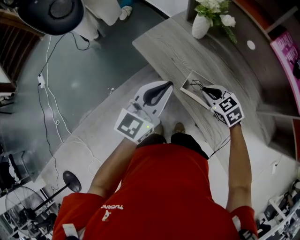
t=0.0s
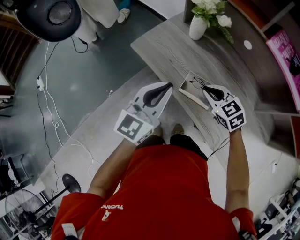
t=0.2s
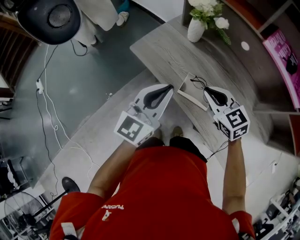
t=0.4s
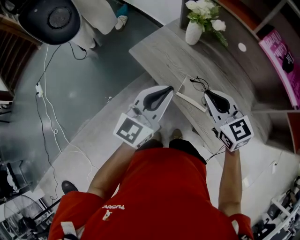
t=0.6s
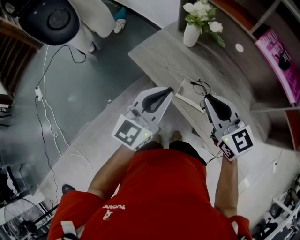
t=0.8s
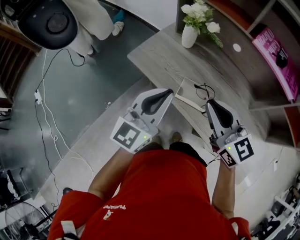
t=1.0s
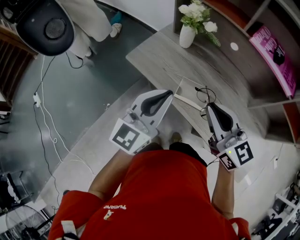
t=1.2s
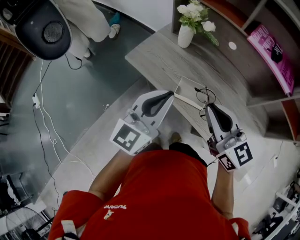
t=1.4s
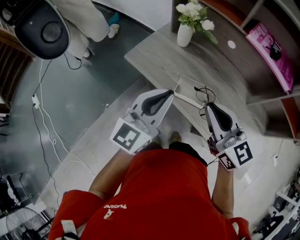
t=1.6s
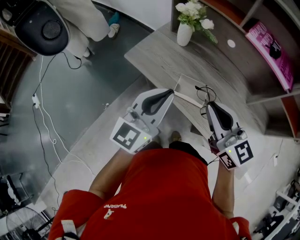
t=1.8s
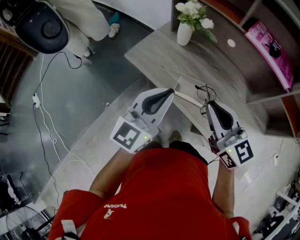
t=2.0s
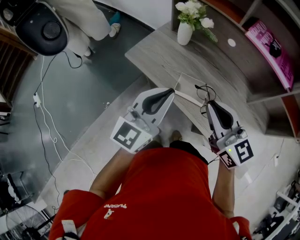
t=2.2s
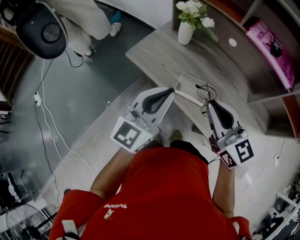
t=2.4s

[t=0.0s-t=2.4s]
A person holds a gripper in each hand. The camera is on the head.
t=0.0s to t=1.2s: The left gripper moves upward, roughly 5 cm. The right gripper moves upward, approximately 25 cm, and points its fingers roughly 40 degrees further upward.
t=1.2s to t=2.4s: The grippers stay close to where they were, moving slightly.

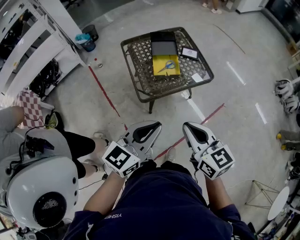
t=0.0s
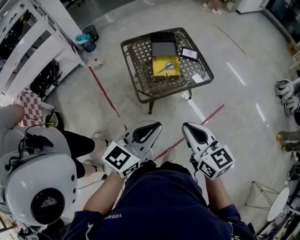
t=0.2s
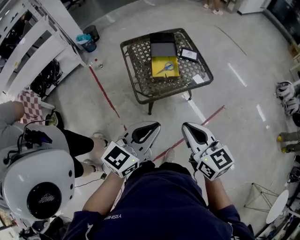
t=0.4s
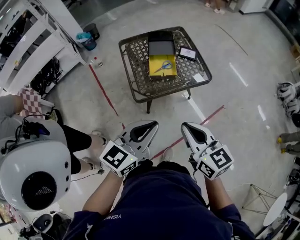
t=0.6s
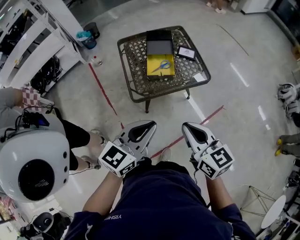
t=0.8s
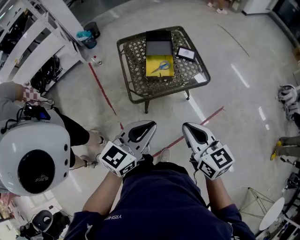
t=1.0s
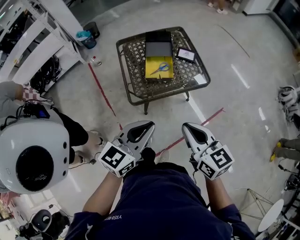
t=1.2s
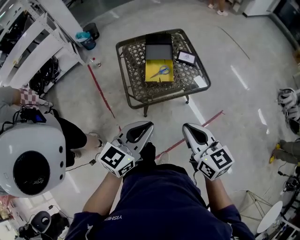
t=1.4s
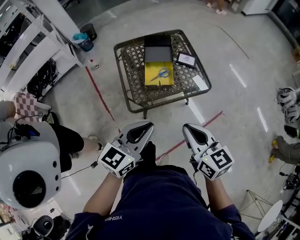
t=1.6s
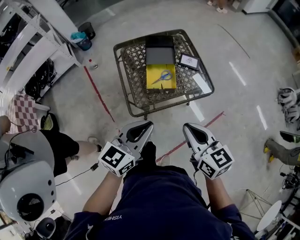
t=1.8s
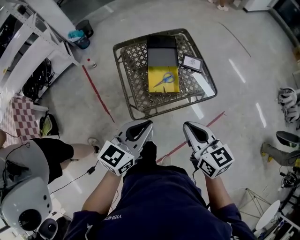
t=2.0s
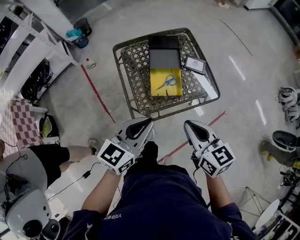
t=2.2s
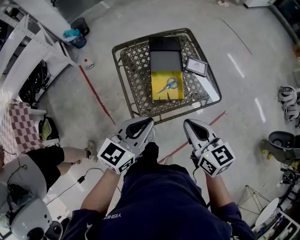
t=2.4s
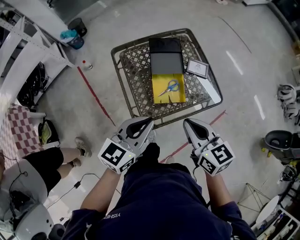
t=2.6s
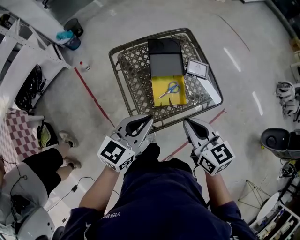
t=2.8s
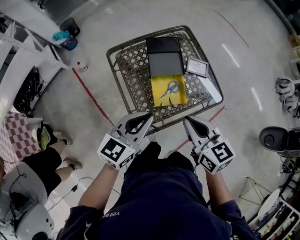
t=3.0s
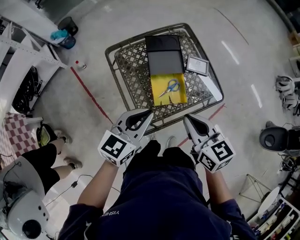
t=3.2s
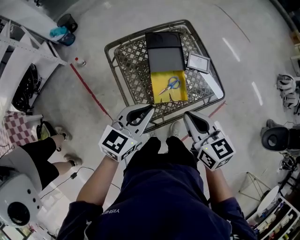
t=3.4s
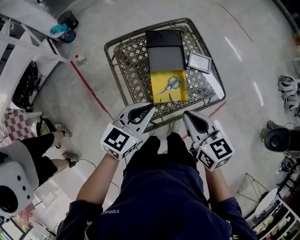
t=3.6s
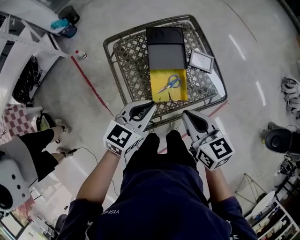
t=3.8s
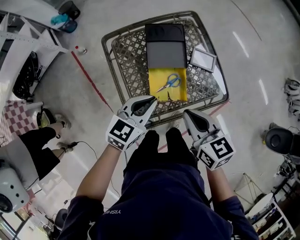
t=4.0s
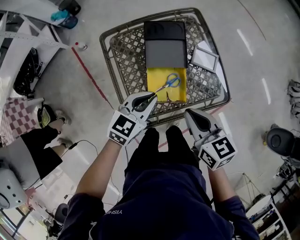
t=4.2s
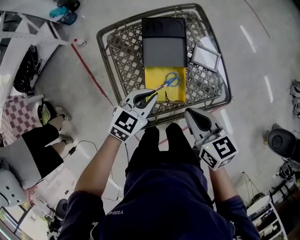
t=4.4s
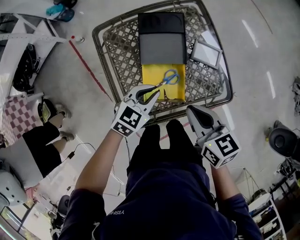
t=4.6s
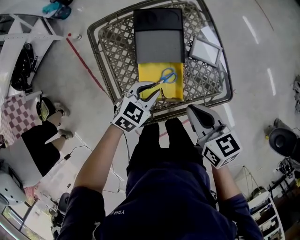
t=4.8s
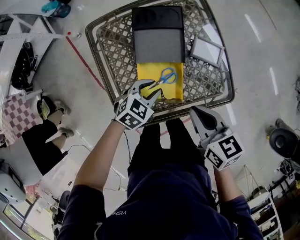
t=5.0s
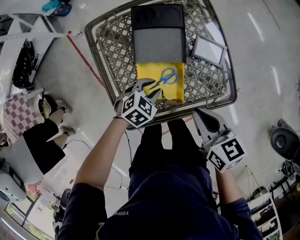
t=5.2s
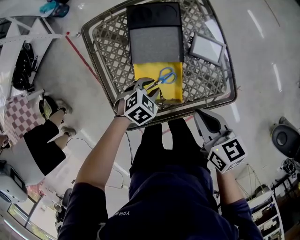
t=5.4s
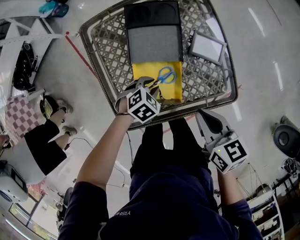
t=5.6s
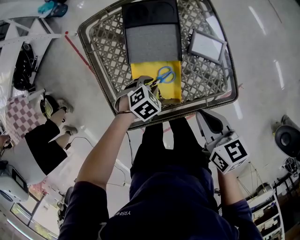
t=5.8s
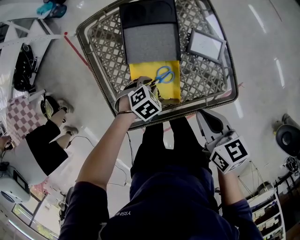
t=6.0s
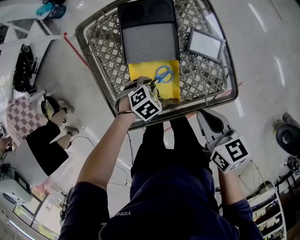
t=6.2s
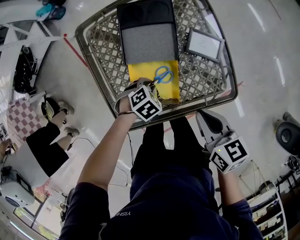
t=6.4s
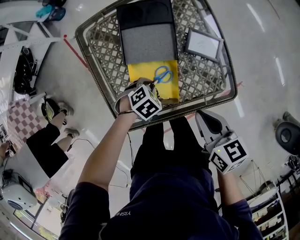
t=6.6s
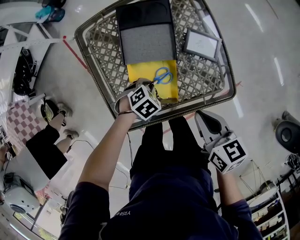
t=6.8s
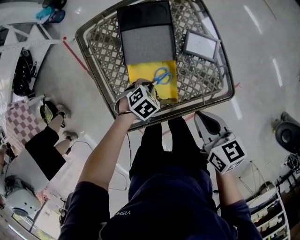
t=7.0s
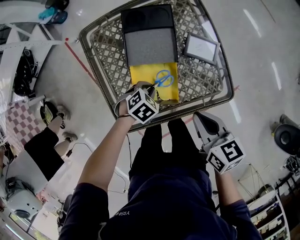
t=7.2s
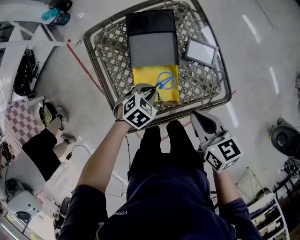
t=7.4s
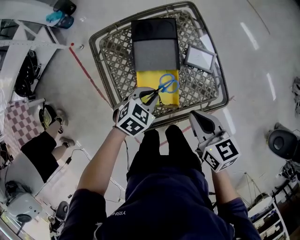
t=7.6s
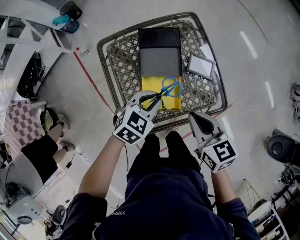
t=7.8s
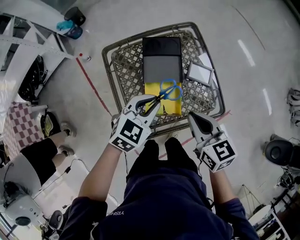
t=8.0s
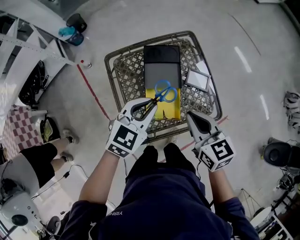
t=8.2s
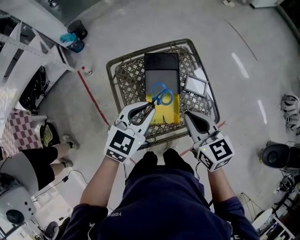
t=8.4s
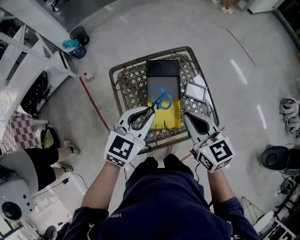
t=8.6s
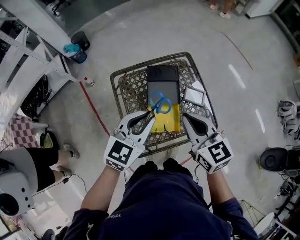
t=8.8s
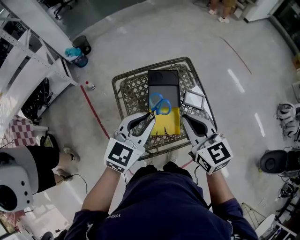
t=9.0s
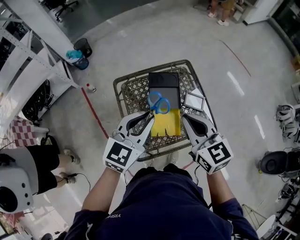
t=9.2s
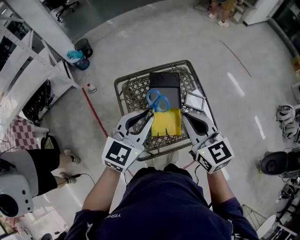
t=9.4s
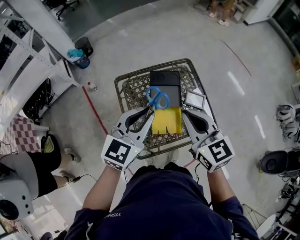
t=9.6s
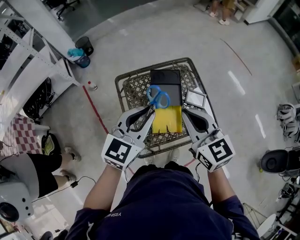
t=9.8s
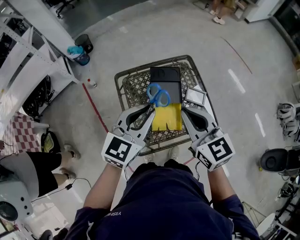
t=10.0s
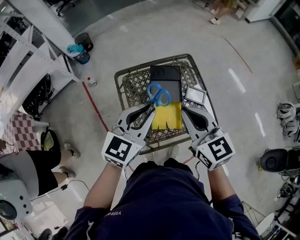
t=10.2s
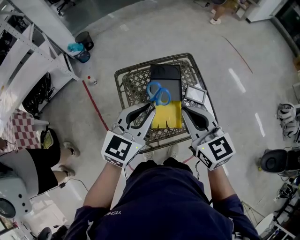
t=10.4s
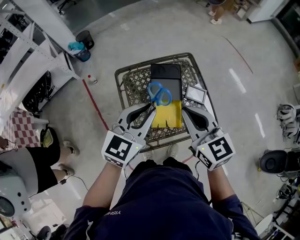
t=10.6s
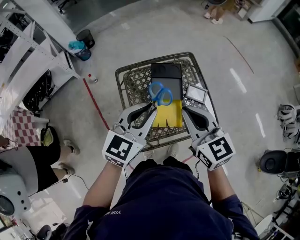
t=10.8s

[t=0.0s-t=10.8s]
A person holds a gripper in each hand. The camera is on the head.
t=0.0s to t=1.6s: The right gripper travels forward and to the right by some 10 cm, while the left gripper heads forward, covering some 10 cm.
t=1.6s to t=3.0s: Both grippers travel together forward and to the left, roughly 25 cm.
t=3.0s to t=4.6s: The left gripper travels downward, forward and to the right by some 20 cm, and swivels roughly 30 degrees. Meanwhile the right gripper goes about 15 cm downward, forward and to the right.
t=4.6s to t=6.2s: The left gripper heads downward, covering roughly 15 cm, and tilts its fingers roughly 40 degrees downward, while the right gripper moves some 10 cm.
t=6.2s to t=7.8s: The right gripper heads upward, covering about 10 cm. The left gripper travels upward by about 20 cm, and tips its fingers upward by roughly 30 degrees.
t=7.8s to t=9.2s: The left gripper goes about 25 cm upward, and changes its angle by some 30 degrees. Meanwhile the right gripper shifts roughly 20 cm upward and to the left, and rotates some 20 degrees.
t=9.2s to t=10.8s: The grippers make only small movements.

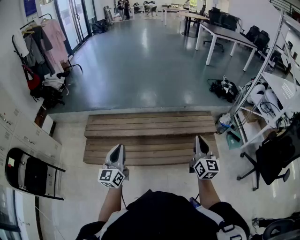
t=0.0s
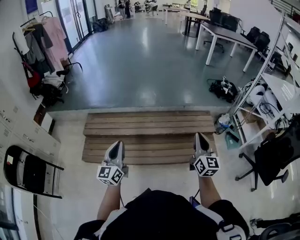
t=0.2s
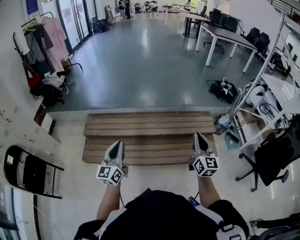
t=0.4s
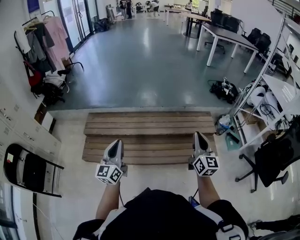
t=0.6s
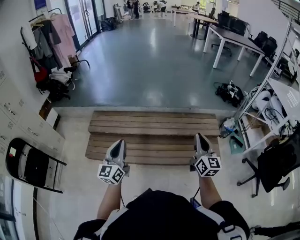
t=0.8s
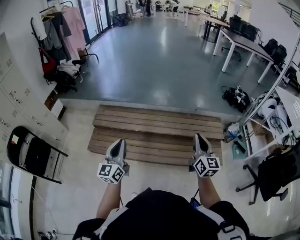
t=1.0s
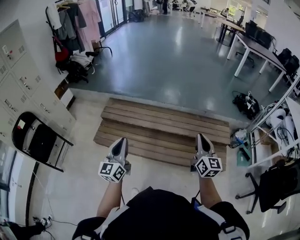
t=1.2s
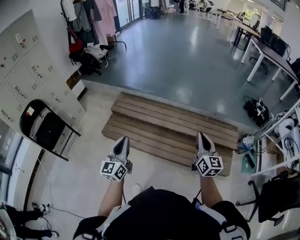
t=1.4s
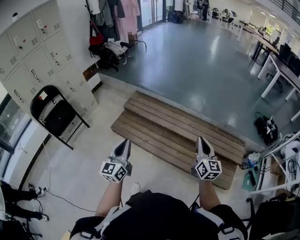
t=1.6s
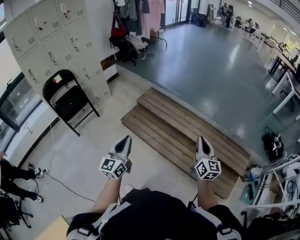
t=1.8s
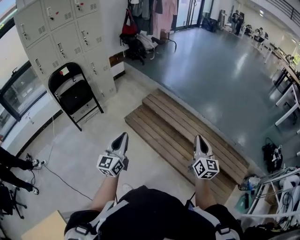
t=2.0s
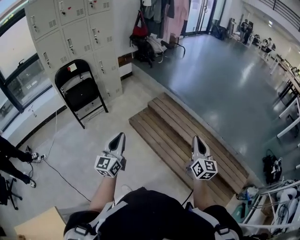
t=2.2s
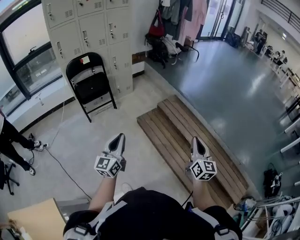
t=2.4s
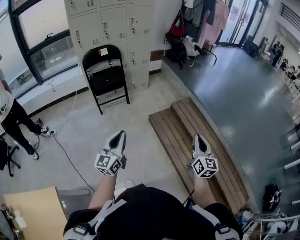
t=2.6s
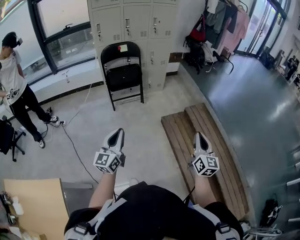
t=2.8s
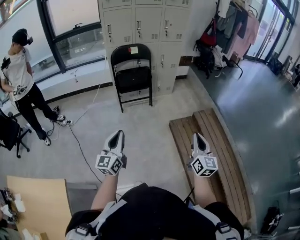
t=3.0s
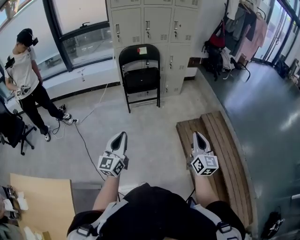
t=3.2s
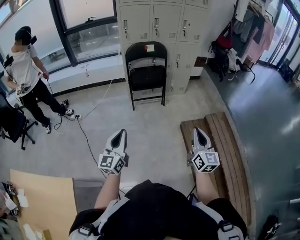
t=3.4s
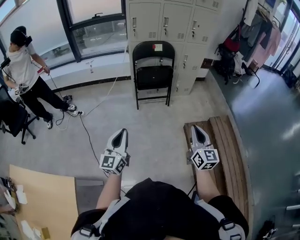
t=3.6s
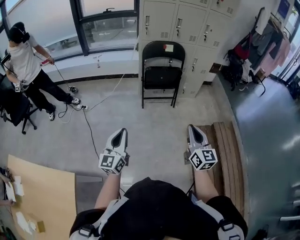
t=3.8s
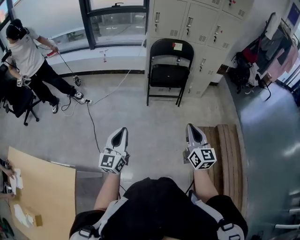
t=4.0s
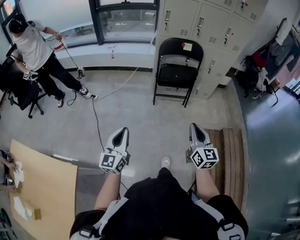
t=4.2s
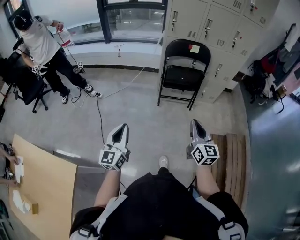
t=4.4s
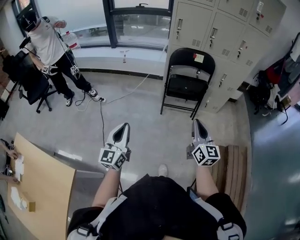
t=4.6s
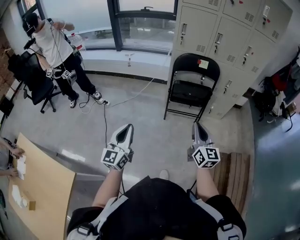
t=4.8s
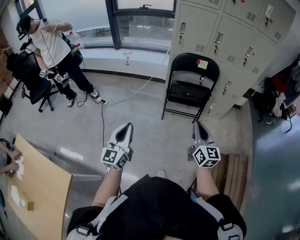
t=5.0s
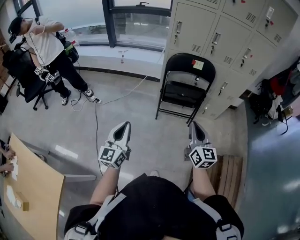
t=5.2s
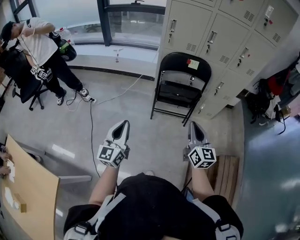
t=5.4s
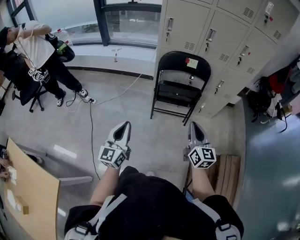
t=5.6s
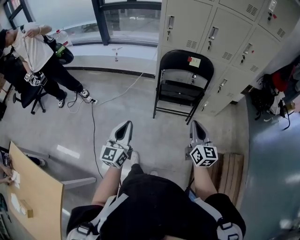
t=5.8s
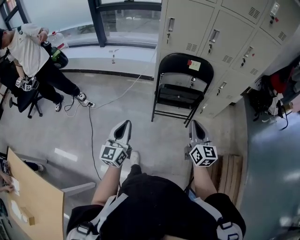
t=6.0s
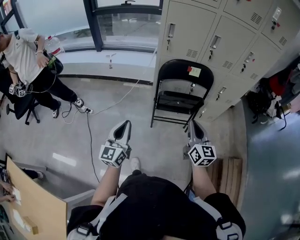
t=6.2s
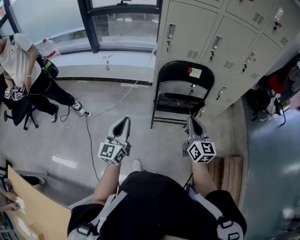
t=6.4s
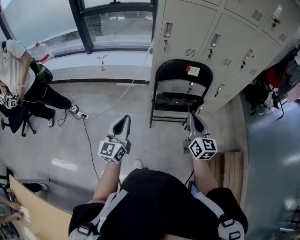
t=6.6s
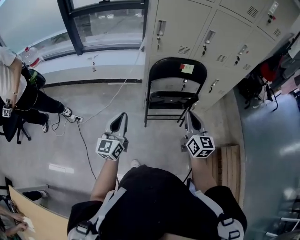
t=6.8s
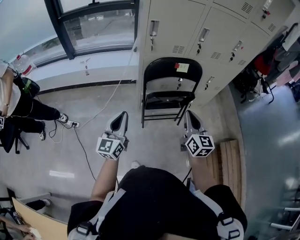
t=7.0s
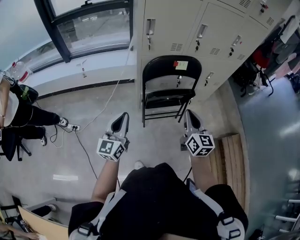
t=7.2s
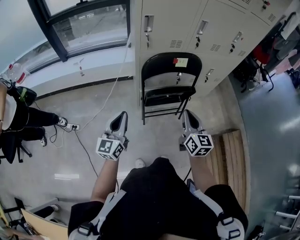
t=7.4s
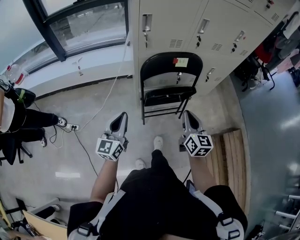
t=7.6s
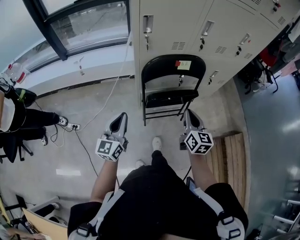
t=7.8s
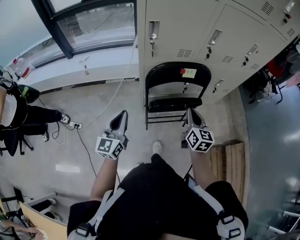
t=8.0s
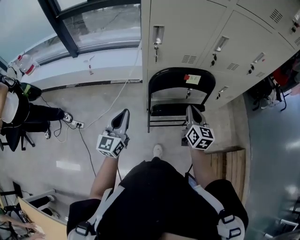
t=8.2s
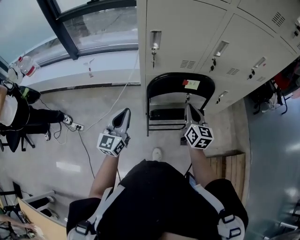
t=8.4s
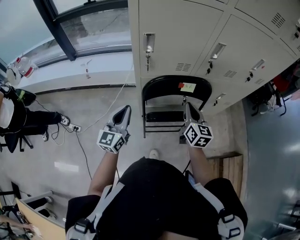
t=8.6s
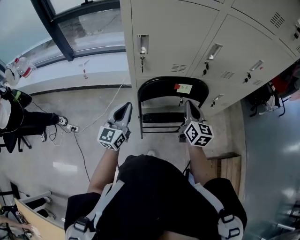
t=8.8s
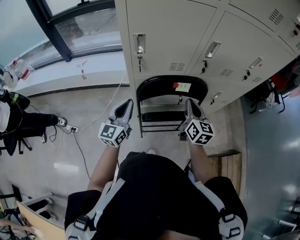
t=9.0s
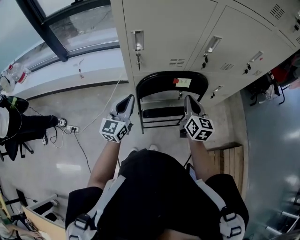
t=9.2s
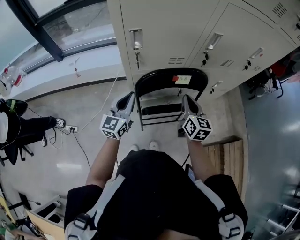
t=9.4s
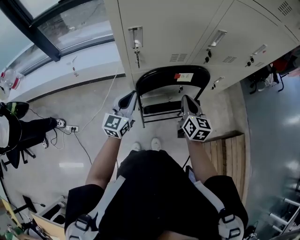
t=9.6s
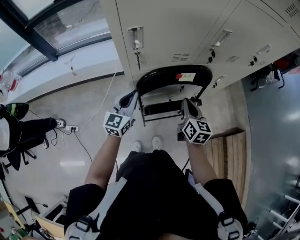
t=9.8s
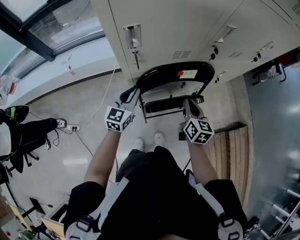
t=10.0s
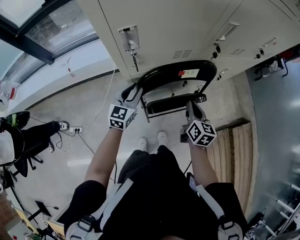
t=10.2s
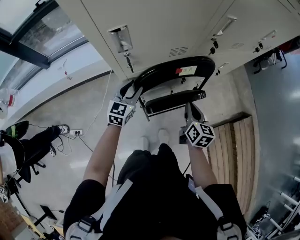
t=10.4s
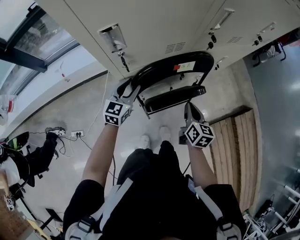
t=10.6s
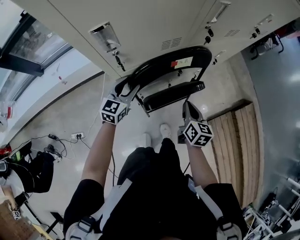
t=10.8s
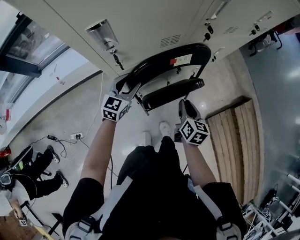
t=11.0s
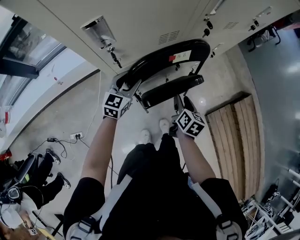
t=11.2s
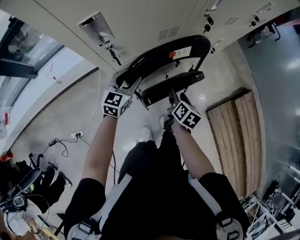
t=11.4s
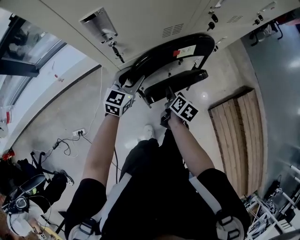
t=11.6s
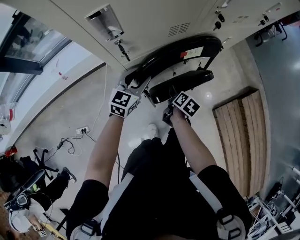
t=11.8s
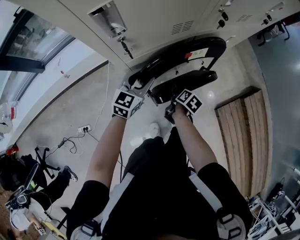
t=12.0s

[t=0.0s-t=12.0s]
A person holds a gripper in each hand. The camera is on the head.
t=0.0s to t=1.6s: The right gripper moves approximately 15 cm, and turns by approximately 30 degrees, while the left gripper moves some 15 cm, and rotates about 30 degrees.
t=1.6s to t=3.0s: The two grippers travel together, approximately 40 cm. The right gripper swivels roughly 50 degrees; the left gripper rotates some 50 degrees.
t=3.0s to t=4.4s: The right gripper goes some 35 cm to the left and forward, and turns by approximately 30 degrees. The left gripper goes approximately 20 cm to the left and forward, and changes its angle by some 20 degrees.
t=4.4s to t=6.0s: Both grippers travel together forward, approximately 25 cm.
t=6.0s to t=7.6s: The right gripper is displaced forward and to the left by some 15 cm; the left gripper shifts about 25 cm forward.
t=7.6s to t=9.0s: Both grippers travel together forward, about 20 cm.
t=9.0s to t=10.4s: The left gripper is displaced downward and forward by roughly 20 cm, turns by approximately 30 degrees, and opens up, while the right gripper goes some 10 cm downward, and rotates about 20 degrees.
t=10.4s to t=12.0s: The right gripper heads downward, covering some 20 cm, swivels roughly 50 degrees, and opens.
